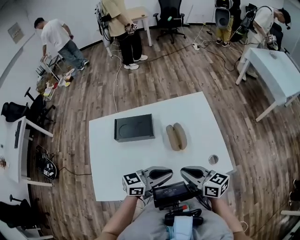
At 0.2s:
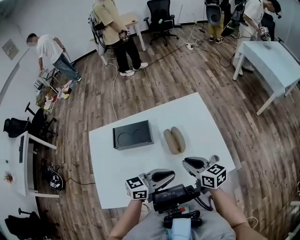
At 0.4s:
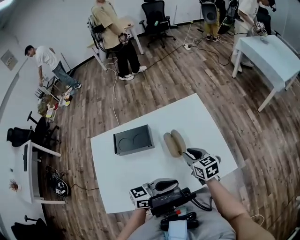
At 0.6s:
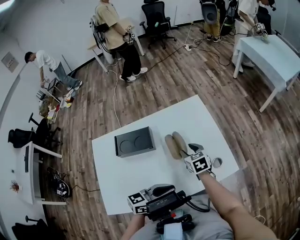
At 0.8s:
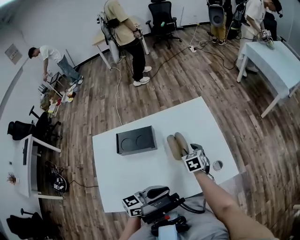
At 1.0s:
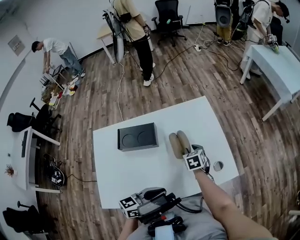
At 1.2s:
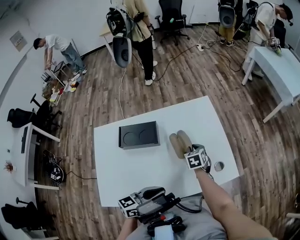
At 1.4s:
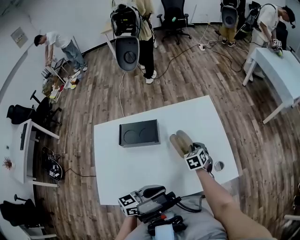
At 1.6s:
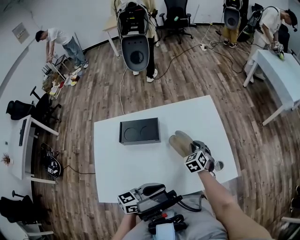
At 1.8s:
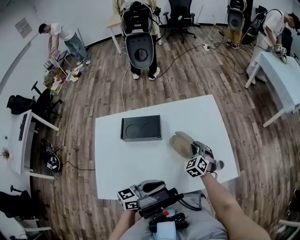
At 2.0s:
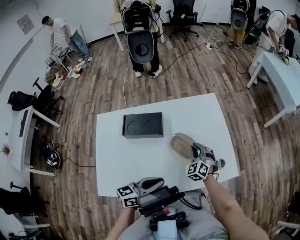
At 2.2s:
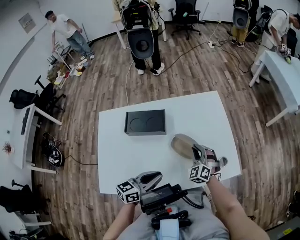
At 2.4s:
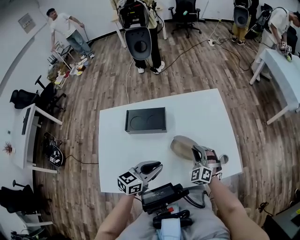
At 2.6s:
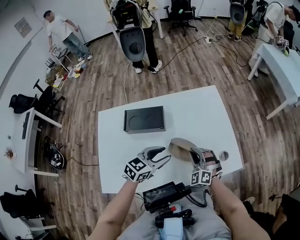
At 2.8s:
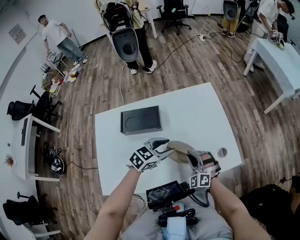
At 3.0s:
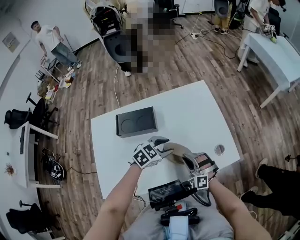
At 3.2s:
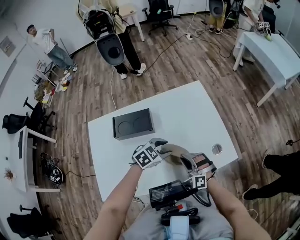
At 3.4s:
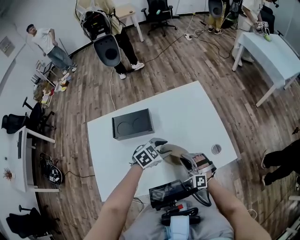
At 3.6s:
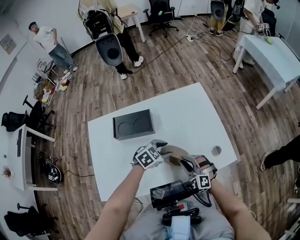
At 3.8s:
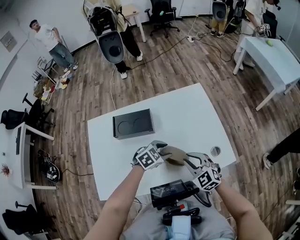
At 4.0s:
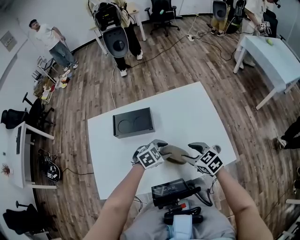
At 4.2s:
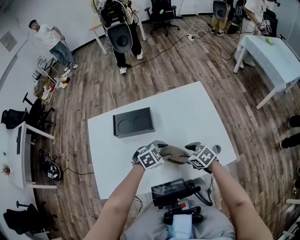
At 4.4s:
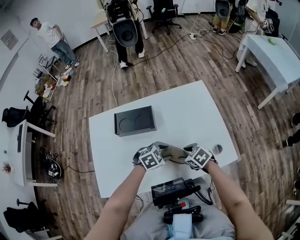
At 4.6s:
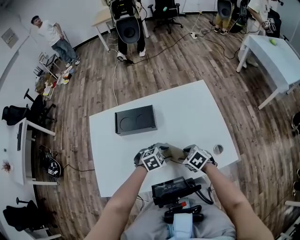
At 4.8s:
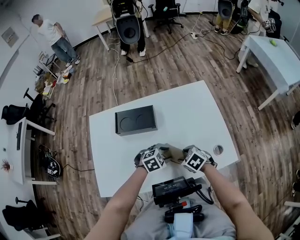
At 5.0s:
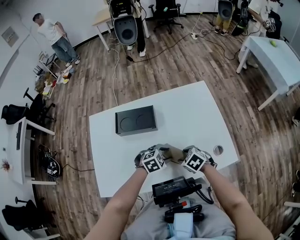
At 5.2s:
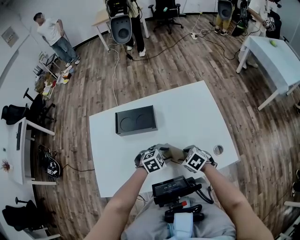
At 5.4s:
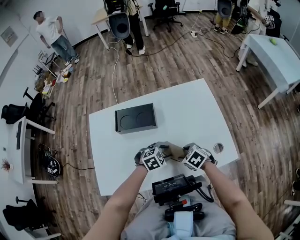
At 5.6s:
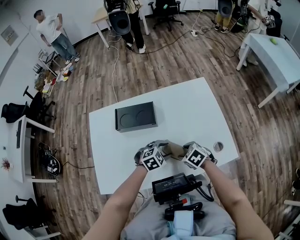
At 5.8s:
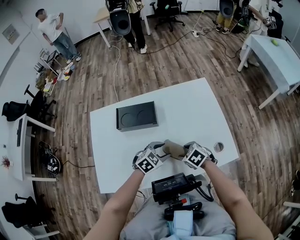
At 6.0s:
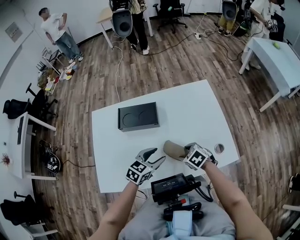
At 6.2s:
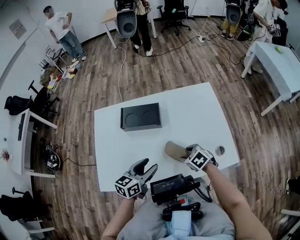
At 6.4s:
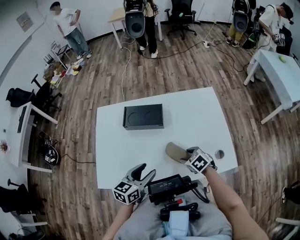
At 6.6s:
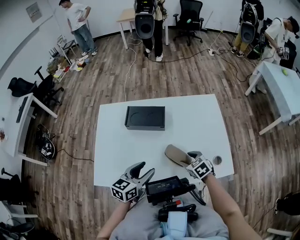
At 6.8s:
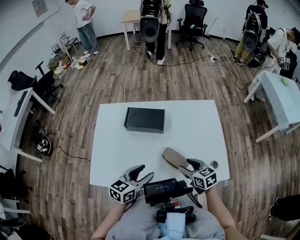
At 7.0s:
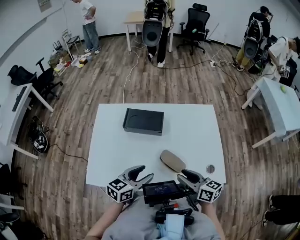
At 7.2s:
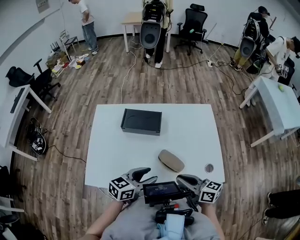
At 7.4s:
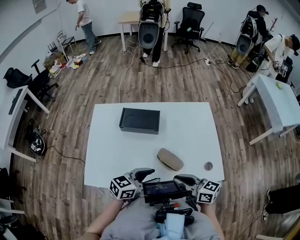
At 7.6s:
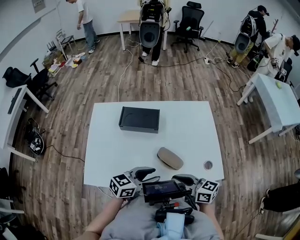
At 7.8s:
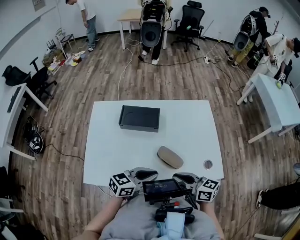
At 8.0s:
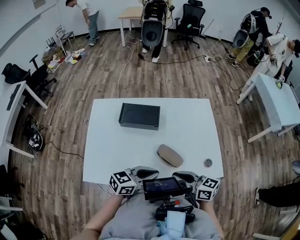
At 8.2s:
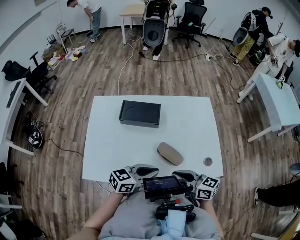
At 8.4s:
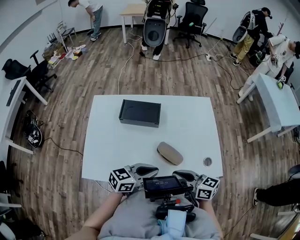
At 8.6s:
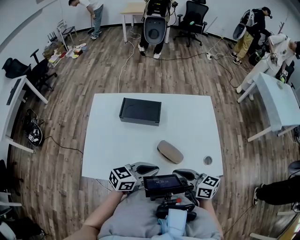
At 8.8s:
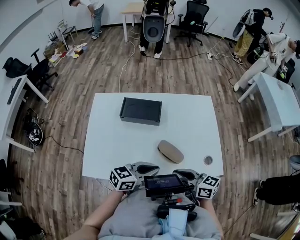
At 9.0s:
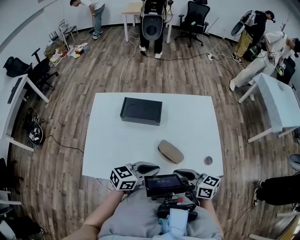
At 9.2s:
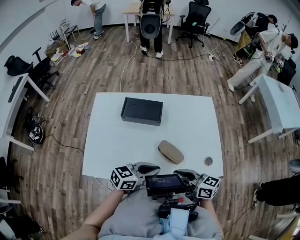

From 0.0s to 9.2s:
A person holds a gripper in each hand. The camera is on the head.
From 0.0s to 1.6s: The left gripper moves backward, some 5 cm; the right gripper moves forward and downward, approximately 25 cm, angles its fingers downward, by approximately 30 degrees, and opens, then closes once more.
From 1.6s to 3.0s: The left gripper is displaced forward and downward by about 15 cm, angles its fingers downward, by about 30 degrees, and opens up, while the right gripper travels backward by some 15 cm, and swivels some 40 degrees.
From 3.0s to 4.6s: The right gripper turns by about 60 degrees, and opens up. The left gripper travels downward by roughly 10 cm.
From 4.6s to 6.2s: The left gripper is displaced upward by approximately 10 cm, and tips its fingers upward by roughly 40 degrees.
From 6.2s to 7.6s: The left gripper travels to the right by roughly 5 cm. The right gripper shifts about 20 cm upward and backward, tips its fingers upward by roughly 50 degrees, and closes its fingers.
From 7.6s to 9.2s: The left gripper closes.

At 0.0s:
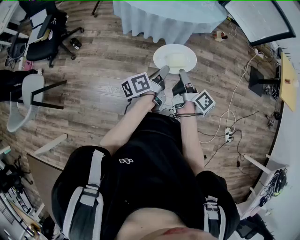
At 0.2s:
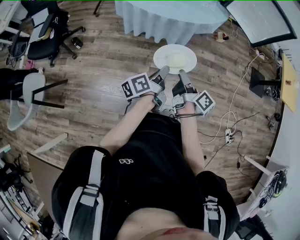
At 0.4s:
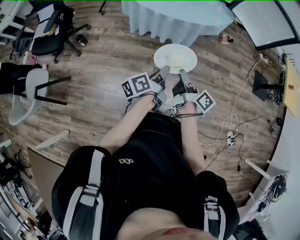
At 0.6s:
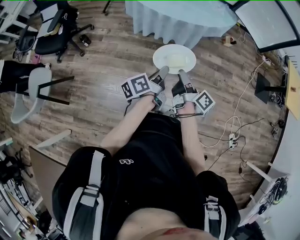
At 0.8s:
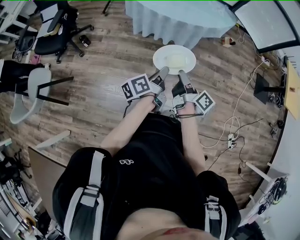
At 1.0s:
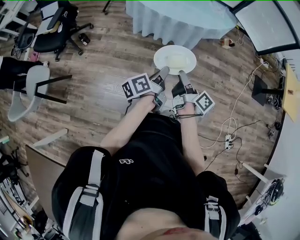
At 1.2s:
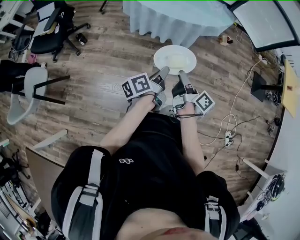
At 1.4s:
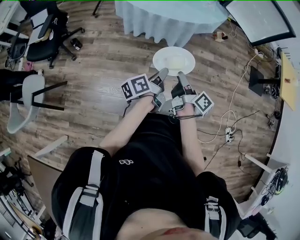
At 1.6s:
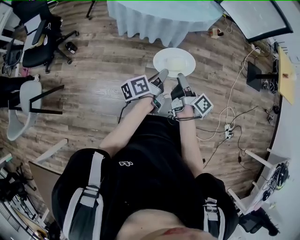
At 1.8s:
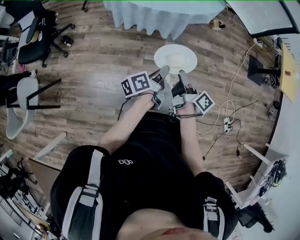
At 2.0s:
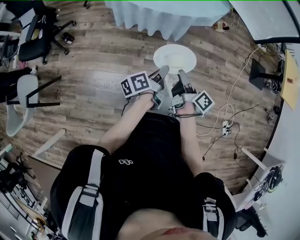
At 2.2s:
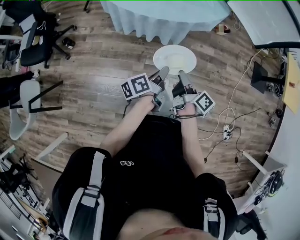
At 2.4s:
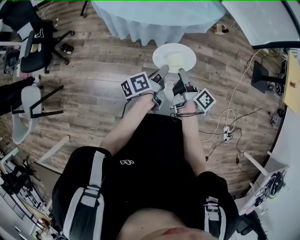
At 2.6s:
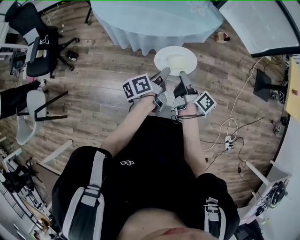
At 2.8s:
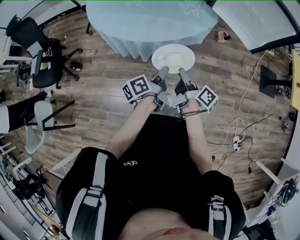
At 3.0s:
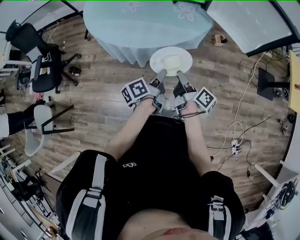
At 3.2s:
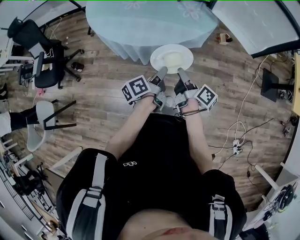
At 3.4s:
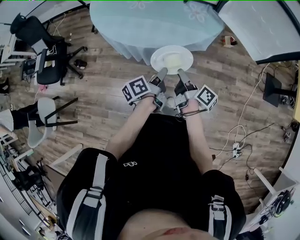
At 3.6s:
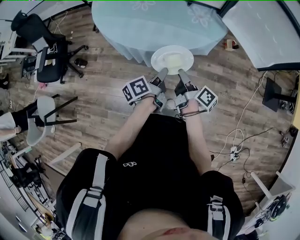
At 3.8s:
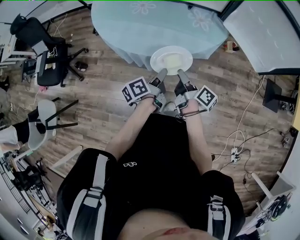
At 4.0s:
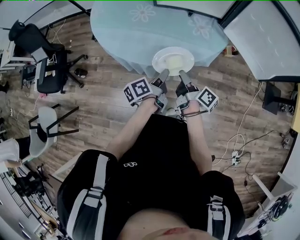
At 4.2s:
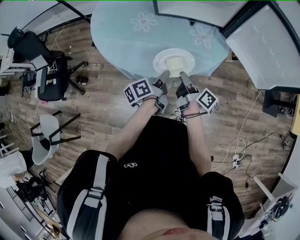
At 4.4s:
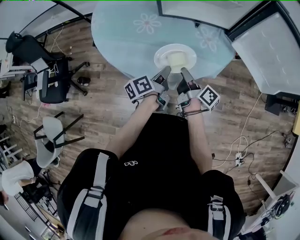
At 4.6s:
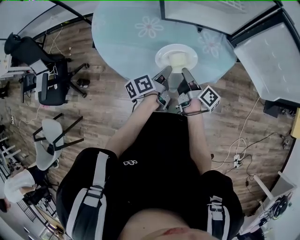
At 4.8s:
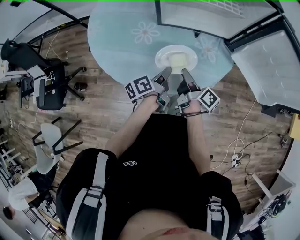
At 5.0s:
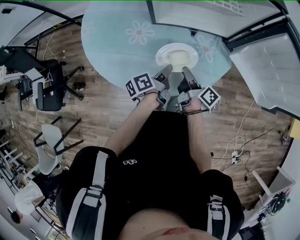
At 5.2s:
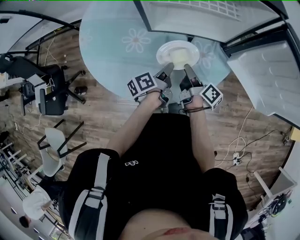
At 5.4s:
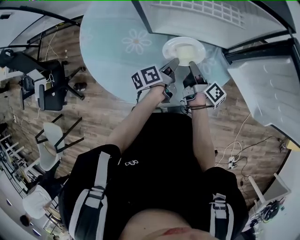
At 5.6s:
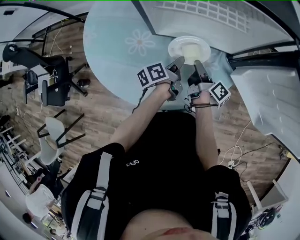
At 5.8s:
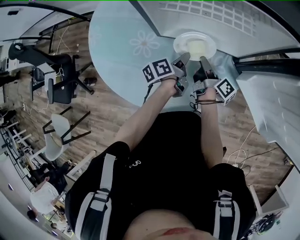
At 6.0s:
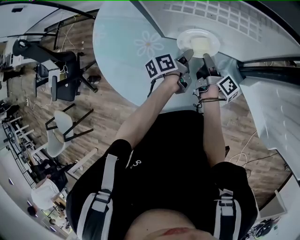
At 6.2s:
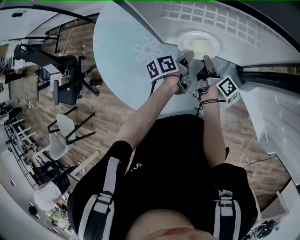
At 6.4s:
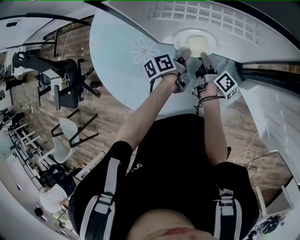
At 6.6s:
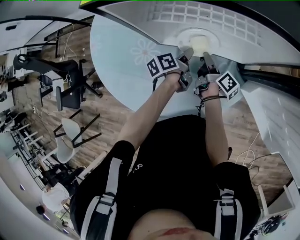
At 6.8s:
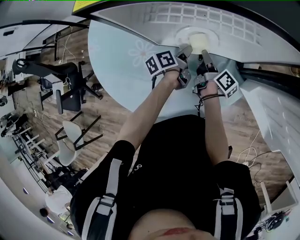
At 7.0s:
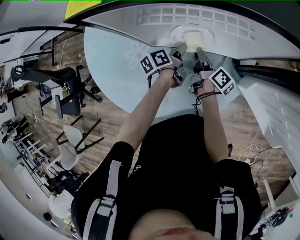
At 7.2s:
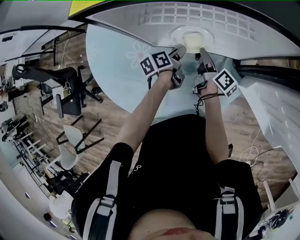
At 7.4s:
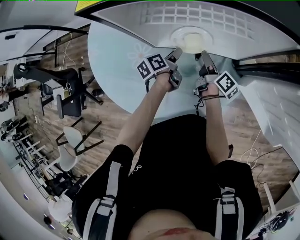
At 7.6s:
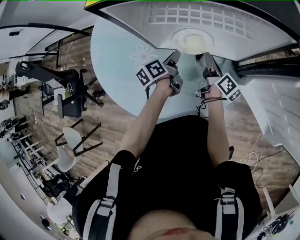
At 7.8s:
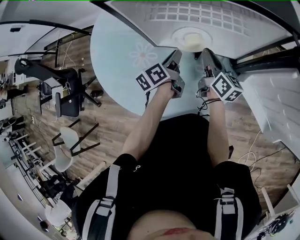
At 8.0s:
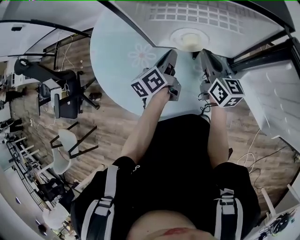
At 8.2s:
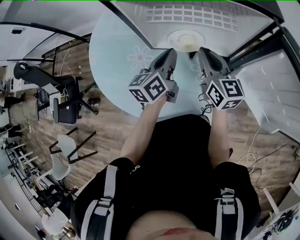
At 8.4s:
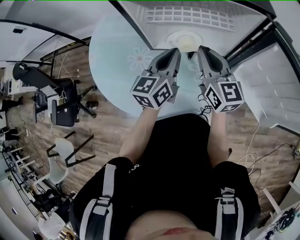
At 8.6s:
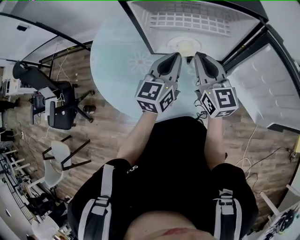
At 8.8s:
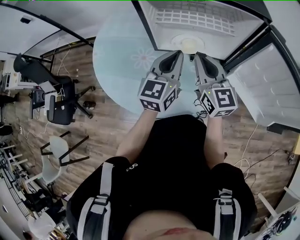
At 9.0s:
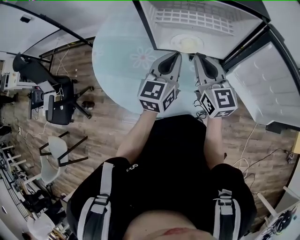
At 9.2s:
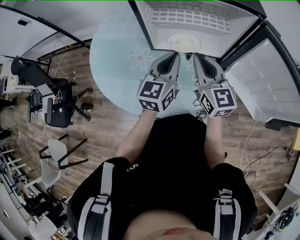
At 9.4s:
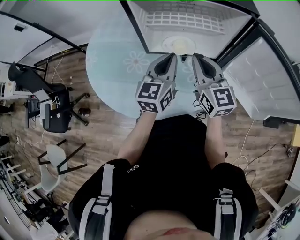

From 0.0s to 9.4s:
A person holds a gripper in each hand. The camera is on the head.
From 1.6s to 3.2s: The left gripper moves some 25 cm.
From 3.2s to 4.8s: The left gripper shifts by approximately 25 cm.
From 4.8s to 6.2s: The left gripper shifts by approximately 25 cm.
From 6.2s to 7.8s: The left gripper is displaced upward by roughly 5 cm, and opens, then closes again.
From 7.8s to 9.4s: The left gripper heads upward, covering some 15 cm, and rolls clockwise, seen from behind, by approximately 50 degrees.

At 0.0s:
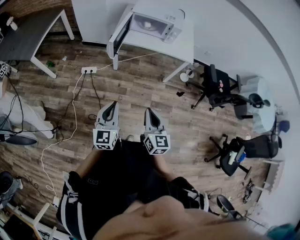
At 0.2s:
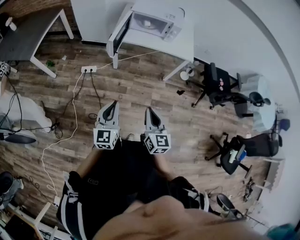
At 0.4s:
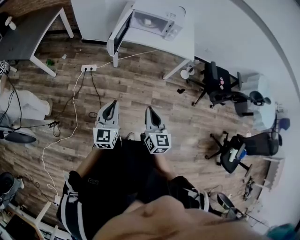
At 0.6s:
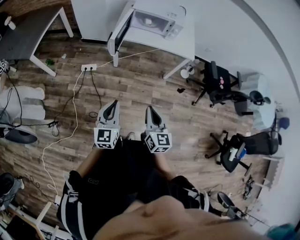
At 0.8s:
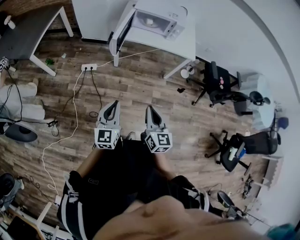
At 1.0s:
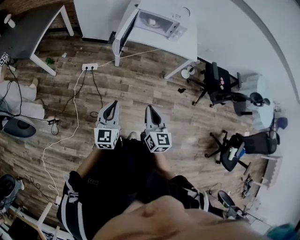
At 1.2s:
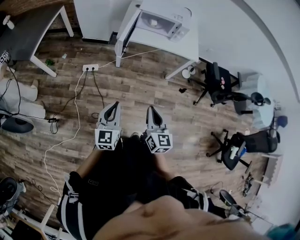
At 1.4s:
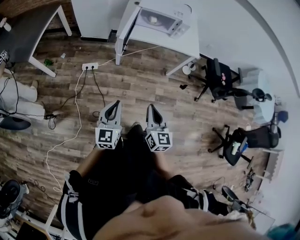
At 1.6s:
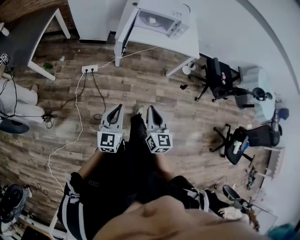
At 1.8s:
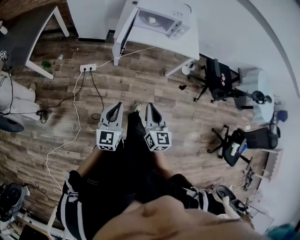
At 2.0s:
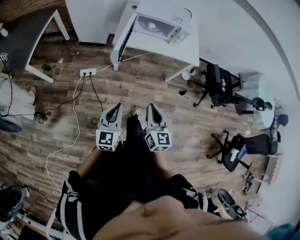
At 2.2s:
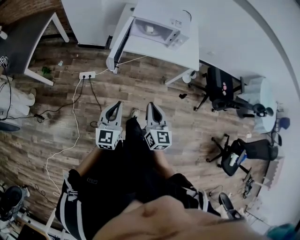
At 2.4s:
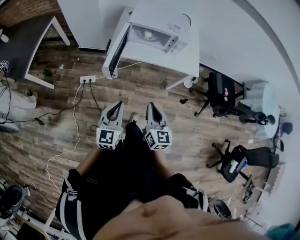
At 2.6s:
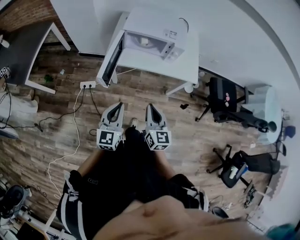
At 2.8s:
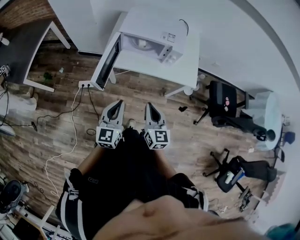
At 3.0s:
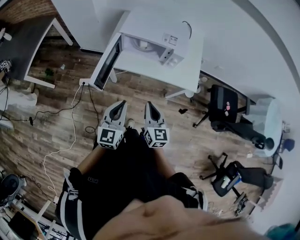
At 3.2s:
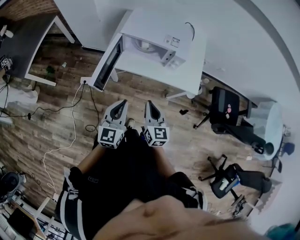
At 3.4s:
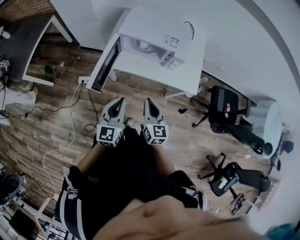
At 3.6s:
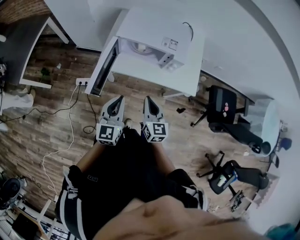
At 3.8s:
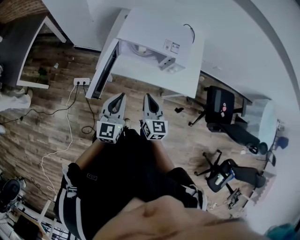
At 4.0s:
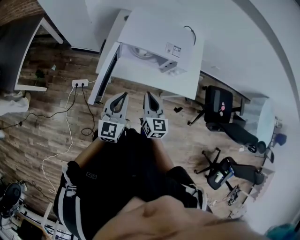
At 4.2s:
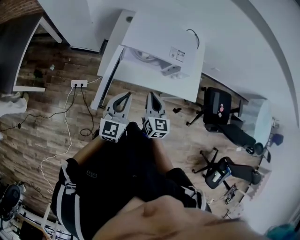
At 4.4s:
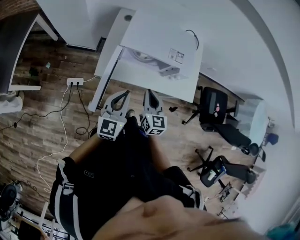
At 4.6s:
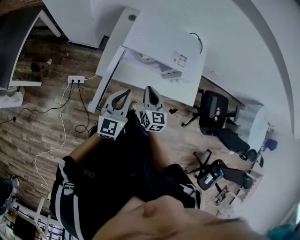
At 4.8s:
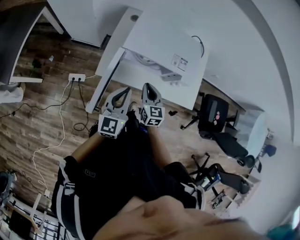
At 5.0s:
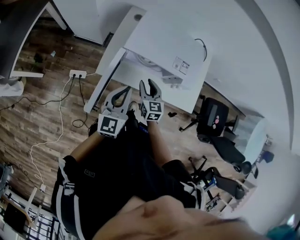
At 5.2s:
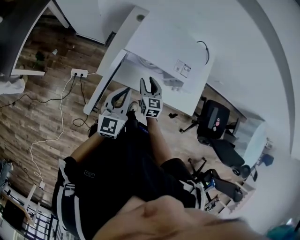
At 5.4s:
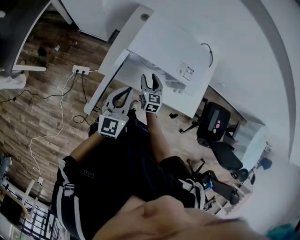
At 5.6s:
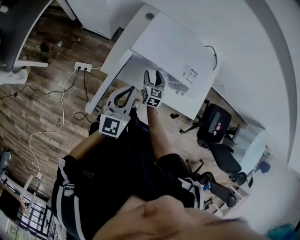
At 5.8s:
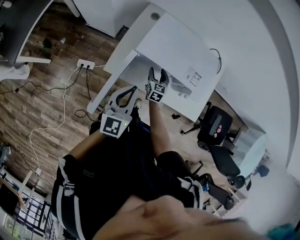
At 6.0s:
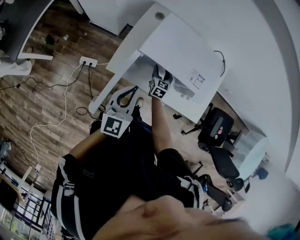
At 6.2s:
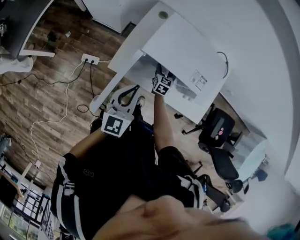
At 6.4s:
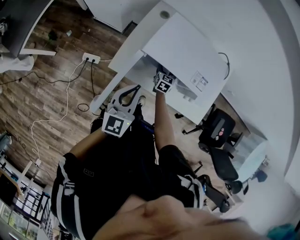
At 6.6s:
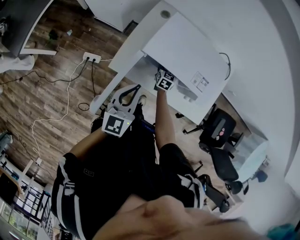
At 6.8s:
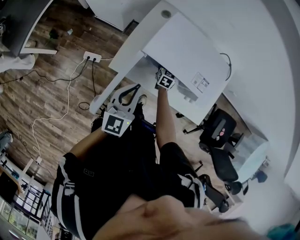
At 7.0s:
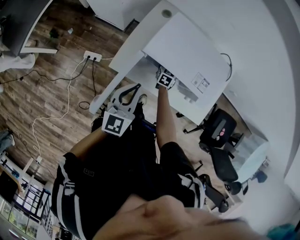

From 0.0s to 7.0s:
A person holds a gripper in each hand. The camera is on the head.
From 0.0s to 1.4s: The two grippers go roughly 10 cm to the left.
From 1.4s to 2.8s: The left gripper is displaced forward and to the right by approximately 30 cm. Meanwhile the right gripper shifts roughly 30 cm forward.
From 2.8s to 4.2s: Both grippers move forward, about 20 cm.
From 4.2s to 5.6s: The left gripper is displaced forward by roughly 10 cm; the right gripper moves forward and downward, about 25 cm, and opens.
From 5.6s to 7.0s: The right gripper goes approximately 15 cm forward and downward.
